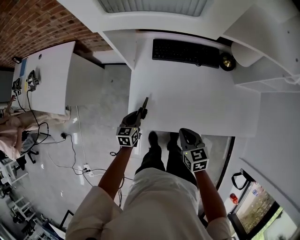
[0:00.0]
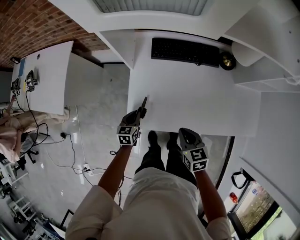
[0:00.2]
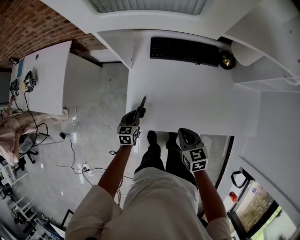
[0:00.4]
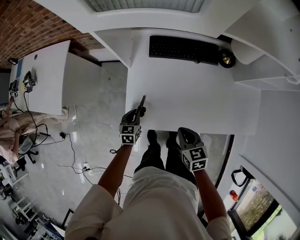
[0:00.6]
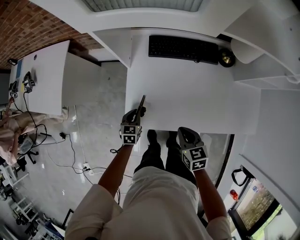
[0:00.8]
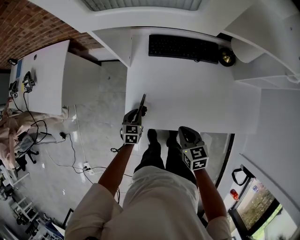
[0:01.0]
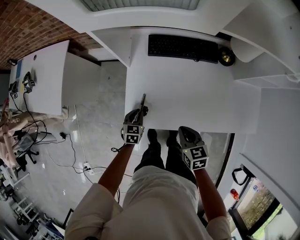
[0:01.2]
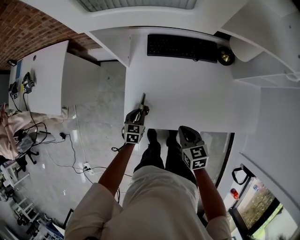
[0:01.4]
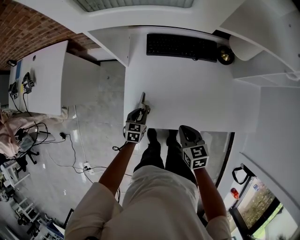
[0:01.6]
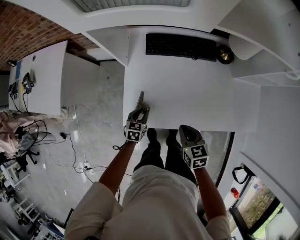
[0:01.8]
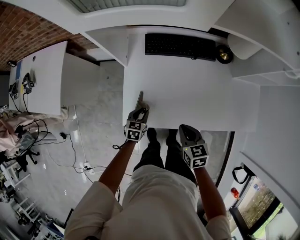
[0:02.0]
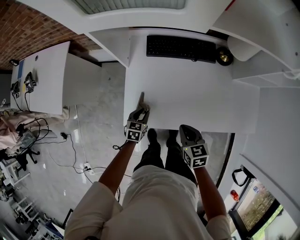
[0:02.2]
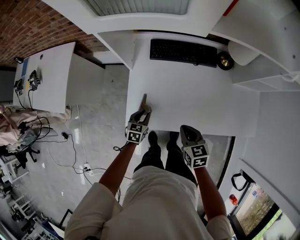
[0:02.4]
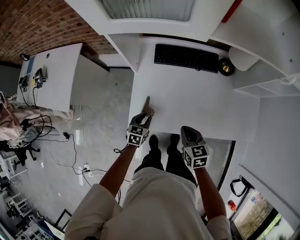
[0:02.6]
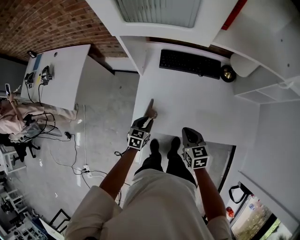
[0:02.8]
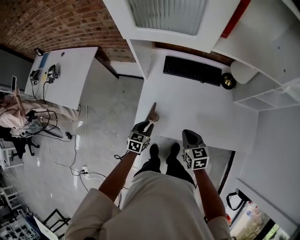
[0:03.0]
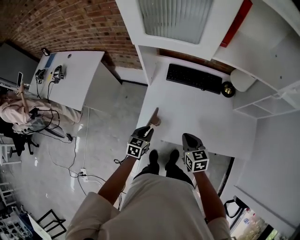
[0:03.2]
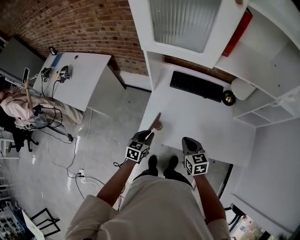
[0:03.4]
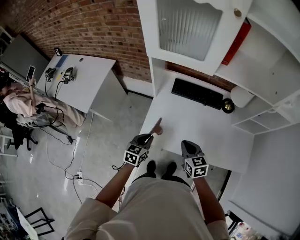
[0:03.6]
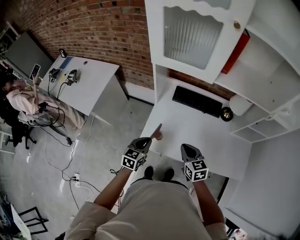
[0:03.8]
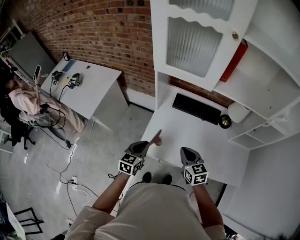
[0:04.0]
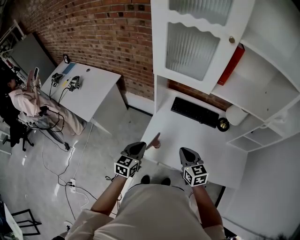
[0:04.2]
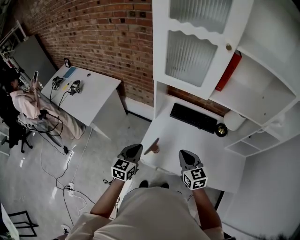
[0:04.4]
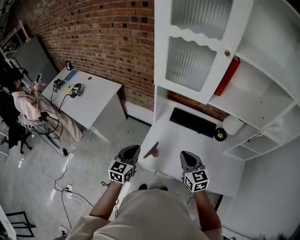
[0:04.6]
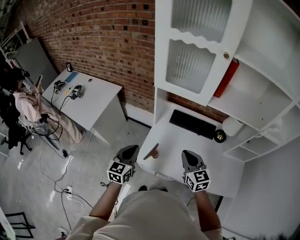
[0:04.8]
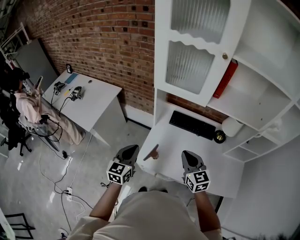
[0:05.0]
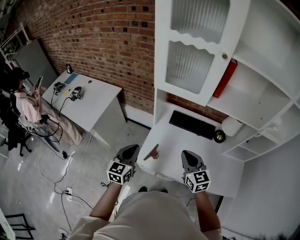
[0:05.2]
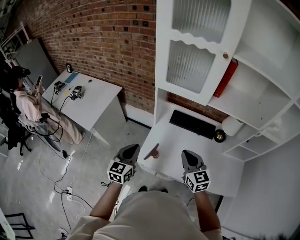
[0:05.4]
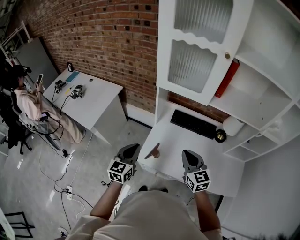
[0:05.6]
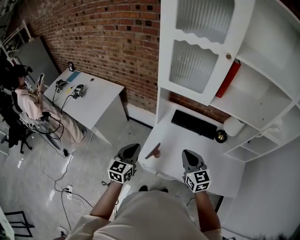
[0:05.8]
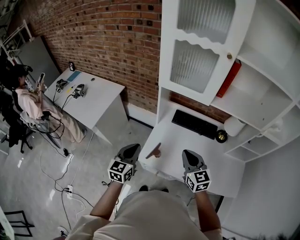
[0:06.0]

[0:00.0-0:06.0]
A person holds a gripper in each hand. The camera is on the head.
0:00.0 to 0:01.6: The left gripper moves downward, roughly 5 cm.
0:01.6 to 0:03.0: The left gripper heads upward, covering some 10 cm; the right gripper shifts some 5 cm upward.
0:03.0 to 0:04.4: The right gripper shifts about 15 cm upward, and changes its angle by approximately 20 degrees; the left gripper is displaced upward by roughly 25 cm, and changes its angle by approximately 30 degrees.
0:04.4 to 0:06.0: Both grippers move upward, roughly 5 cm.

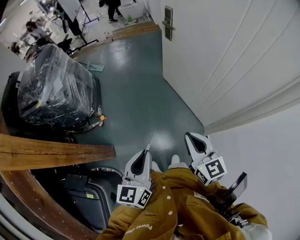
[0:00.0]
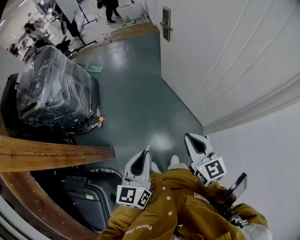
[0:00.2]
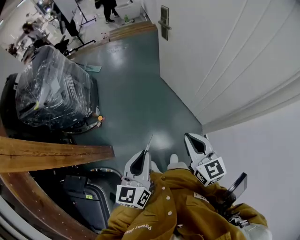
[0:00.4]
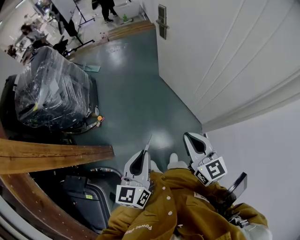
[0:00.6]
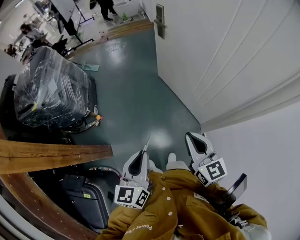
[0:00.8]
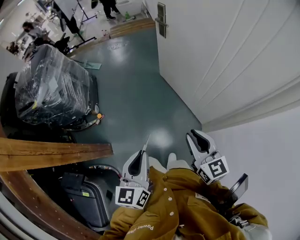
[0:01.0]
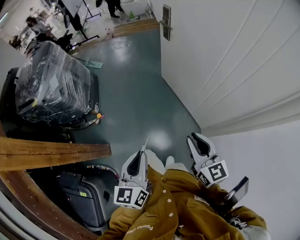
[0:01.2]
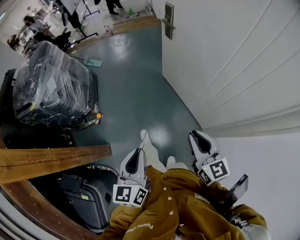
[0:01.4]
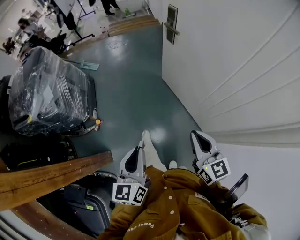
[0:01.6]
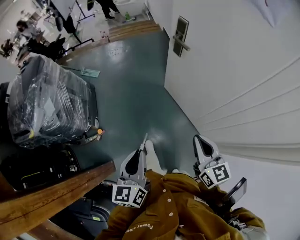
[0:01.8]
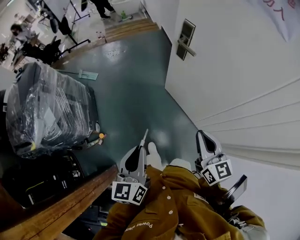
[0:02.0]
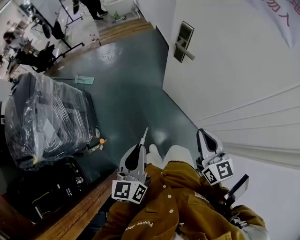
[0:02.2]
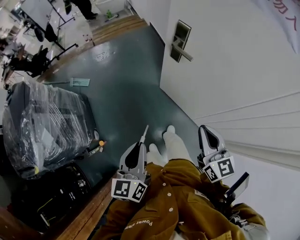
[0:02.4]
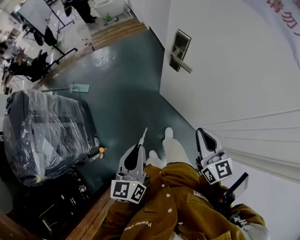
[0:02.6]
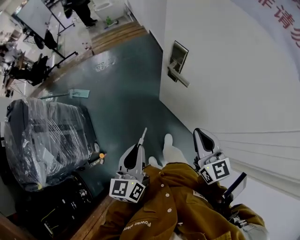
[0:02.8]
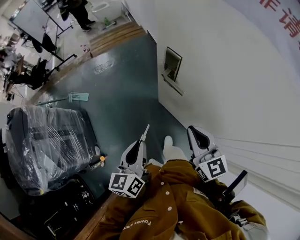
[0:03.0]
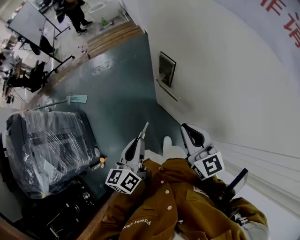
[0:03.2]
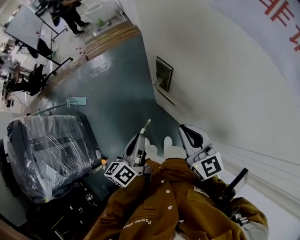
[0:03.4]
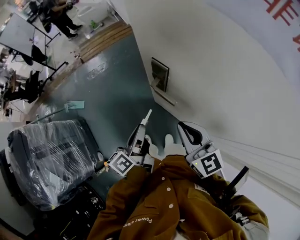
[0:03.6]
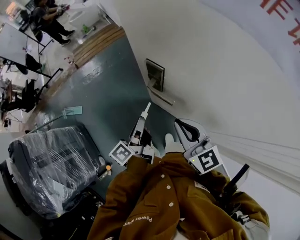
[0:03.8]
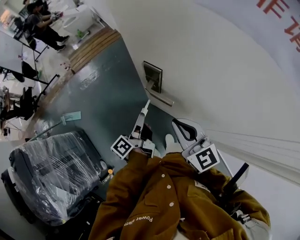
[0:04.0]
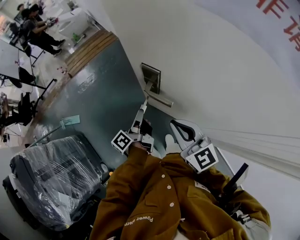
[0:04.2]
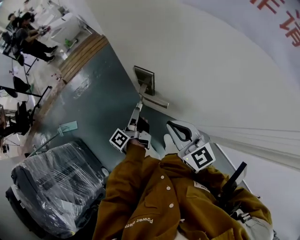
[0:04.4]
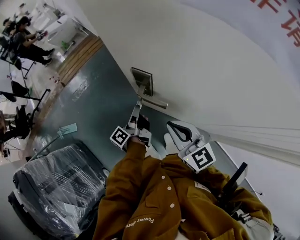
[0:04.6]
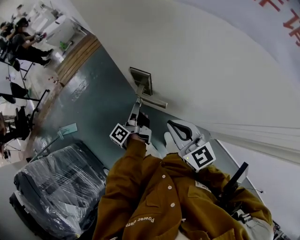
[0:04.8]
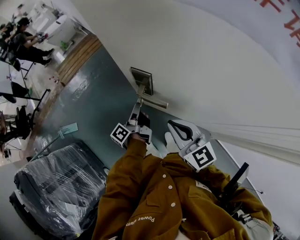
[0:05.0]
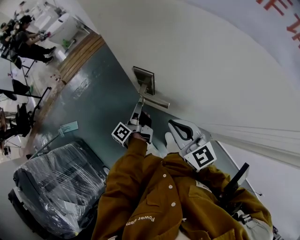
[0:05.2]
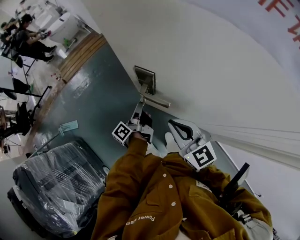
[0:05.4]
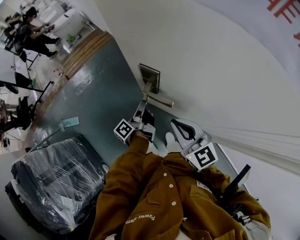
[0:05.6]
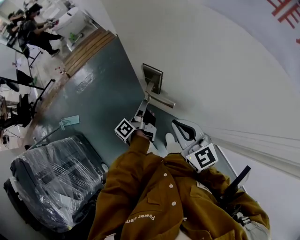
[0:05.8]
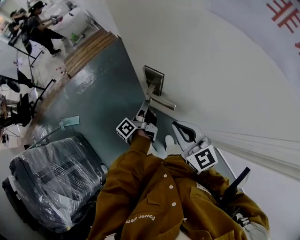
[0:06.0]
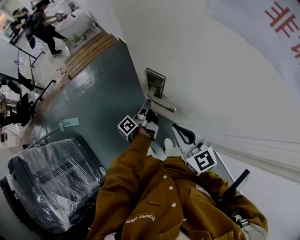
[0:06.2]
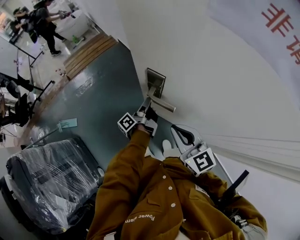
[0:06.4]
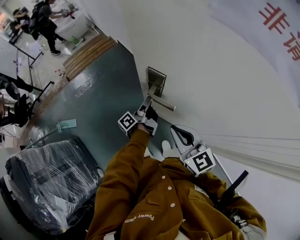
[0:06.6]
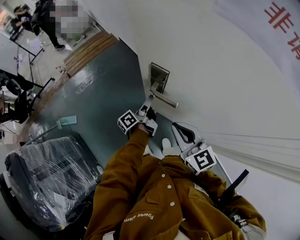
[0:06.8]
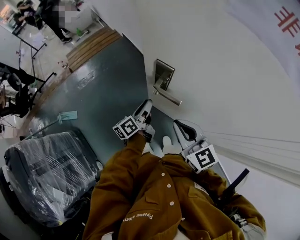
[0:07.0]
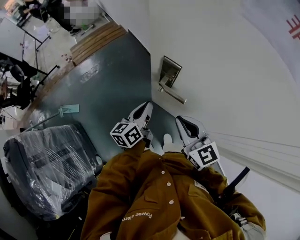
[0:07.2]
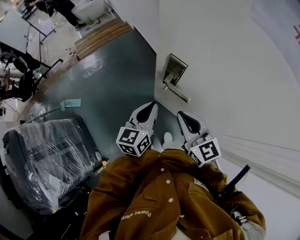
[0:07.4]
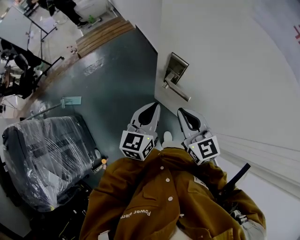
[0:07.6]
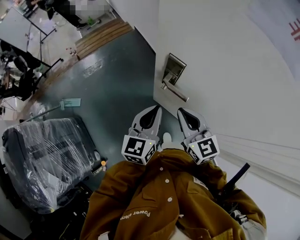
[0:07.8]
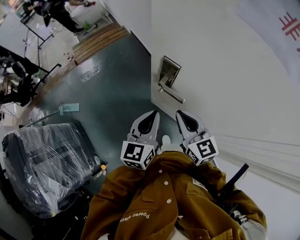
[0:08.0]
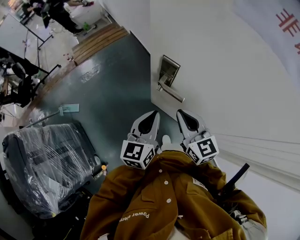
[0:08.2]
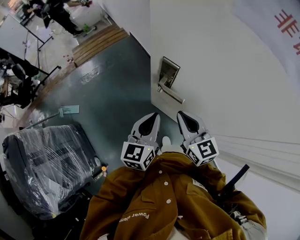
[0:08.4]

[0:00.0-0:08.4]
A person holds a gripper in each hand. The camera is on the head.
0:00.0 to 0:01.4: The left gripper heads forward, covering about 5 cm. Meanwhile the right gripper moves forward and to the right, roughly 10 cm.
0:01.4 to 0:02.8: Both grippers are carried forward, approximately 40 cm.
0:02.8 to 0:04.2: The right gripper goes about 15 cm forward. Meanwhile the left gripper goes roughly 30 cm forward and downward, and rotates around the line of its fingers by some 60 degrees, counterclockwise from behind.
0:04.2 to 0:05.6: The left gripper ends up approximately 5 cm from where it was.
0:05.6 to 0:07.0: The left gripper turns by approximately 30 degrees, and opens its fingers.
0:07.0 to 0:08.4: The left gripper goes some 15 cm upward and backward, rotates around the line of its fingers by approximately 50 degrees, clockwise from behind, and closes up.

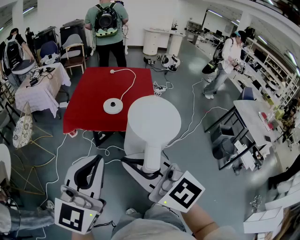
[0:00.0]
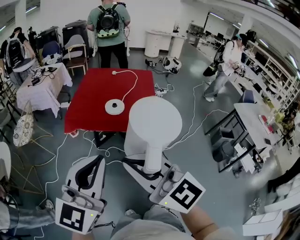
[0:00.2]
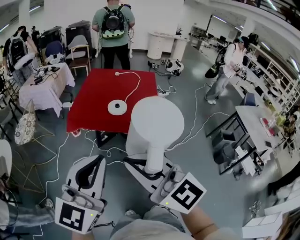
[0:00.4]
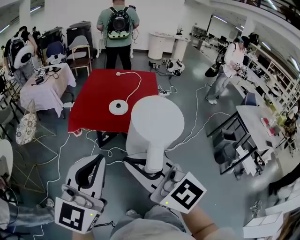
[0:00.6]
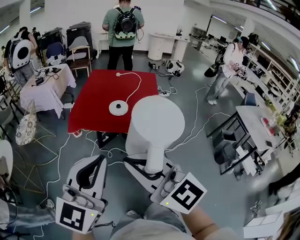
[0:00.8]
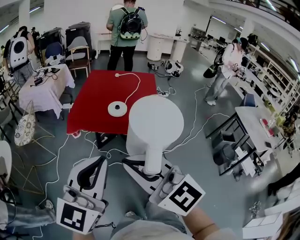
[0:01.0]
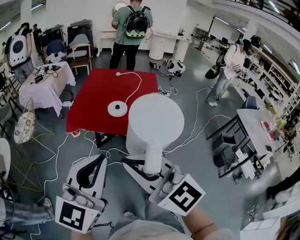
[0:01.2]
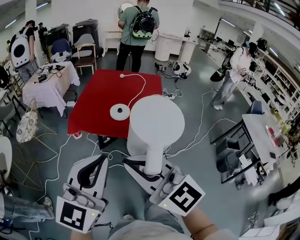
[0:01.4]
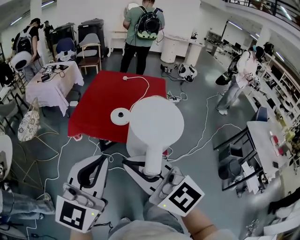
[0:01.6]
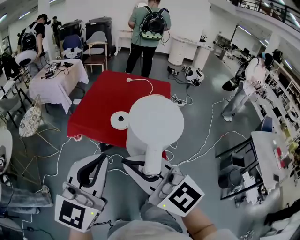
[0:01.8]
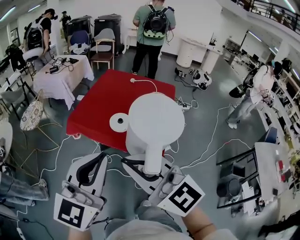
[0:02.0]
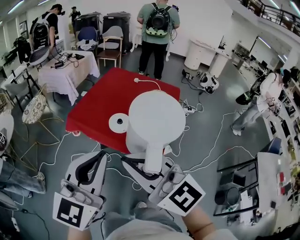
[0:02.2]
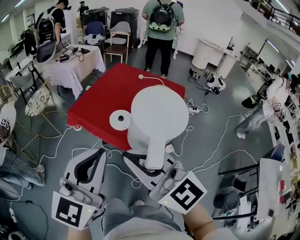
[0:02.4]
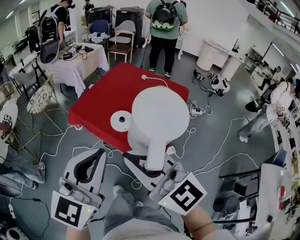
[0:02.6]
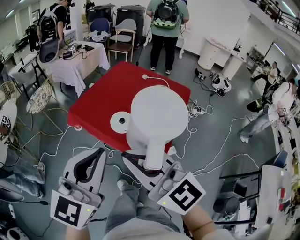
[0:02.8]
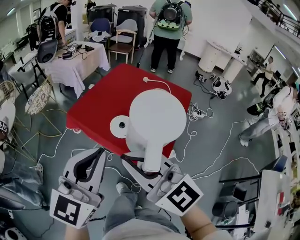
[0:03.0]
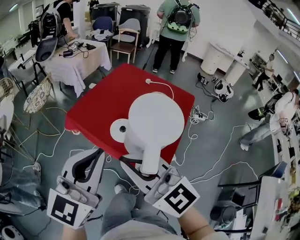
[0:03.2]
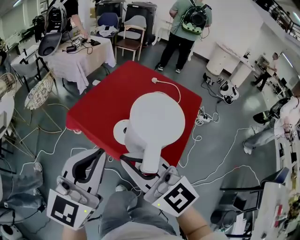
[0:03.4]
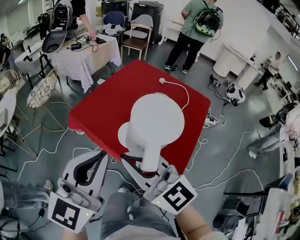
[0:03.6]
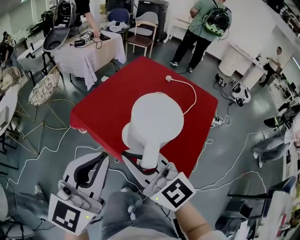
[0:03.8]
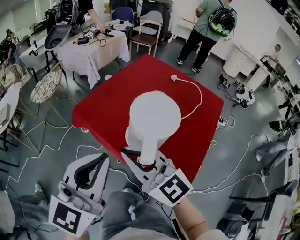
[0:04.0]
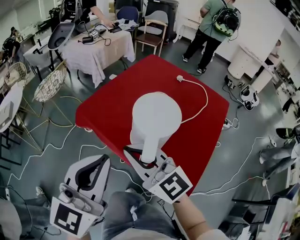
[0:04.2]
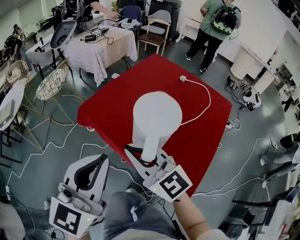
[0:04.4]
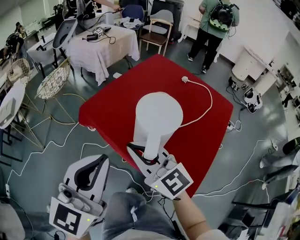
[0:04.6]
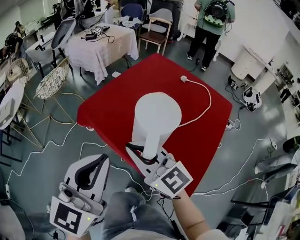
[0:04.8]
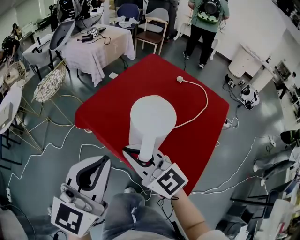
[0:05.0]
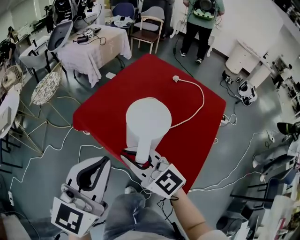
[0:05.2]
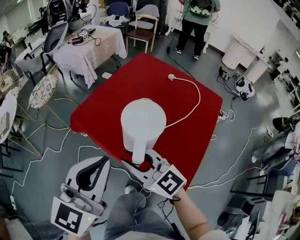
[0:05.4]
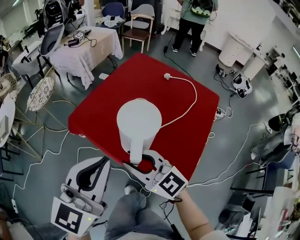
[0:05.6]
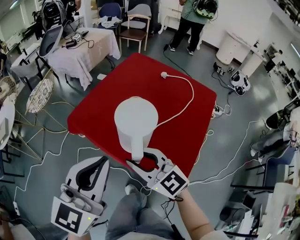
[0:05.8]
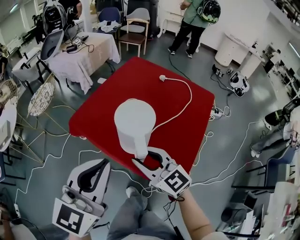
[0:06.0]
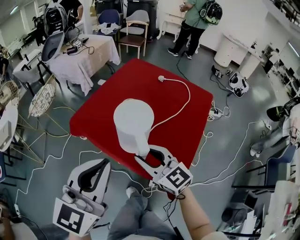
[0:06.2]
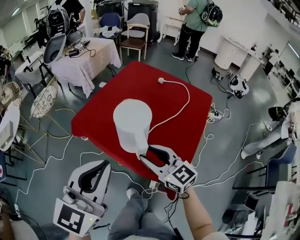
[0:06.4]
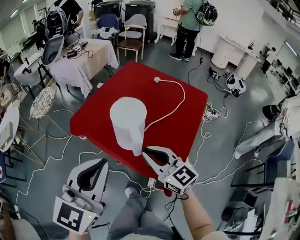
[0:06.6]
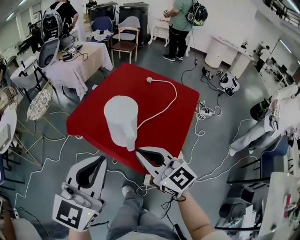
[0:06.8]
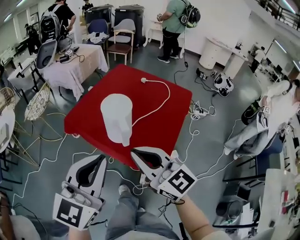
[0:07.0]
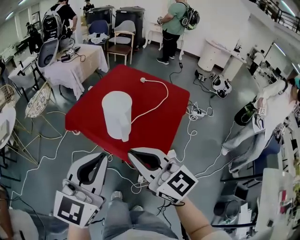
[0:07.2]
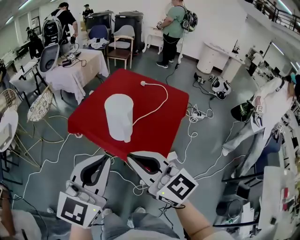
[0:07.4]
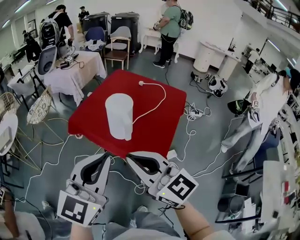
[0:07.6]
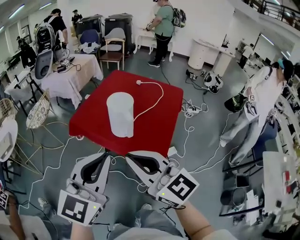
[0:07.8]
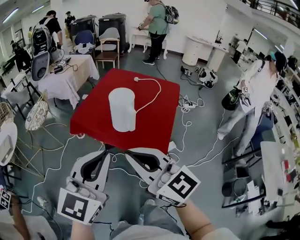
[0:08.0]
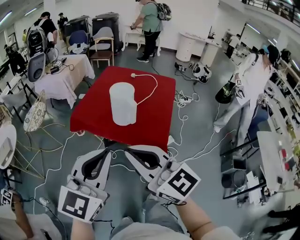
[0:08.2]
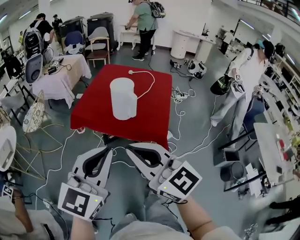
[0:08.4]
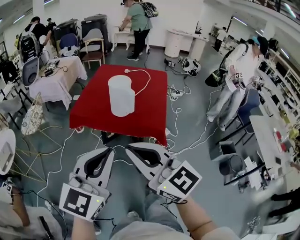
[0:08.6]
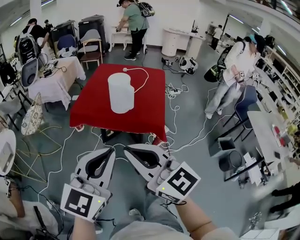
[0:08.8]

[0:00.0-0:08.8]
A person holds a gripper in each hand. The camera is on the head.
0:00.0 to 0:01.4: The grippers make only small movements.
0:01.4 to 0:03.0: Both grippers move to the right and forward, about 25 cm. The right gripper swivels some 20 degrees. The left gripper rotates some 20 degrees.
0:03.0 to 0:04.4: The right gripper travels forward and downward by roughly 25 cm. The left gripper goes some 15 cm downward and forward.
0:04.4 to 0:05.8: The left gripper shifts roughly 5 cm upward. Meanwhile the right gripper is displaced to the right by some 5 cm, and opens.
0:05.8 to 0:07.4: The left gripper goes approximately 15 cm backward; the right gripper goes about 25 cm backward and upward, and closes up.
0:07.4 to 0:08.8: The two grippers go approximately 20 cm backward and to the left.
